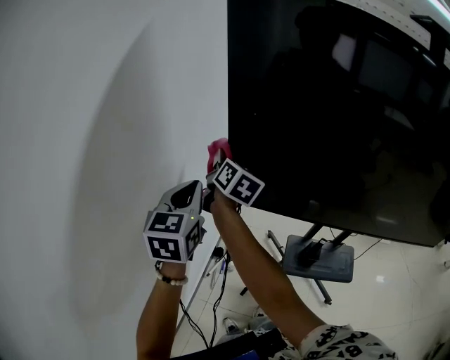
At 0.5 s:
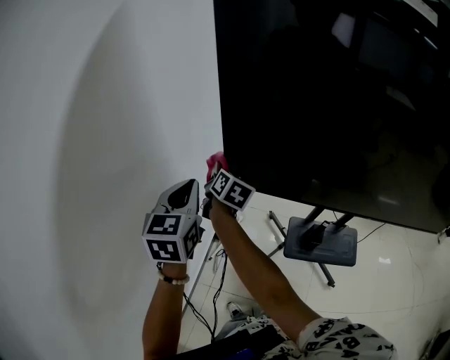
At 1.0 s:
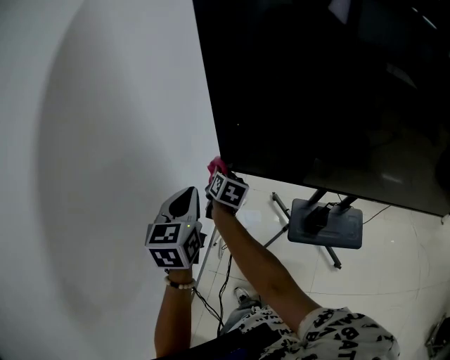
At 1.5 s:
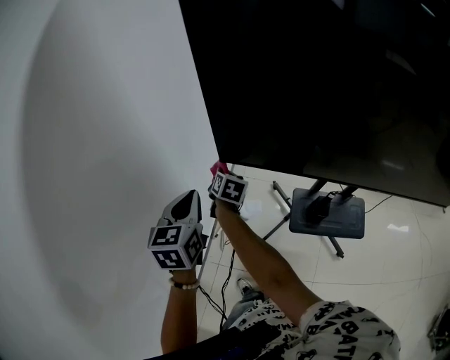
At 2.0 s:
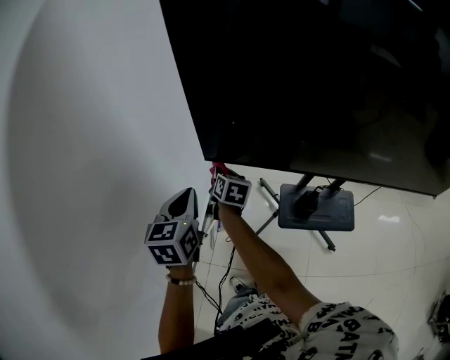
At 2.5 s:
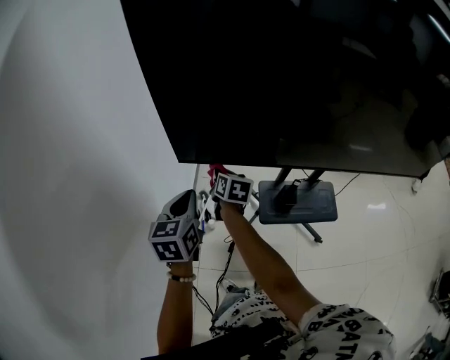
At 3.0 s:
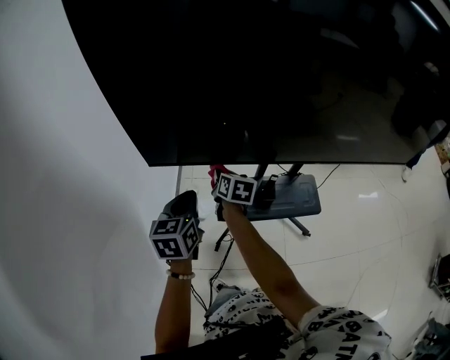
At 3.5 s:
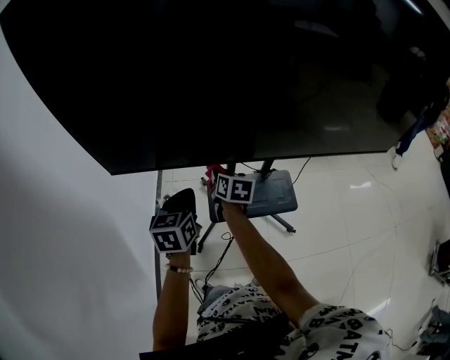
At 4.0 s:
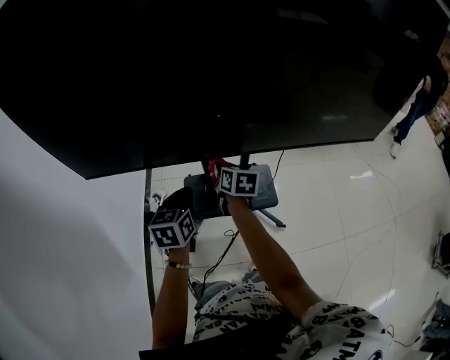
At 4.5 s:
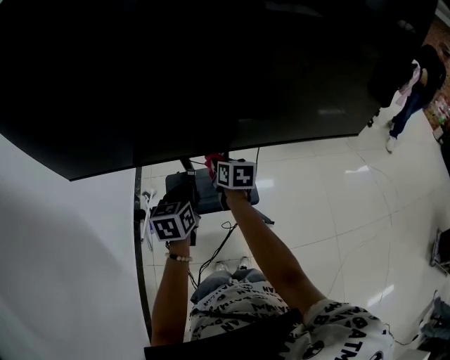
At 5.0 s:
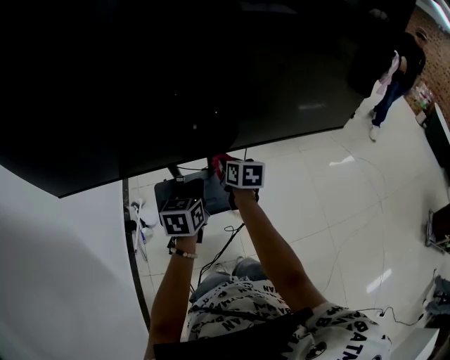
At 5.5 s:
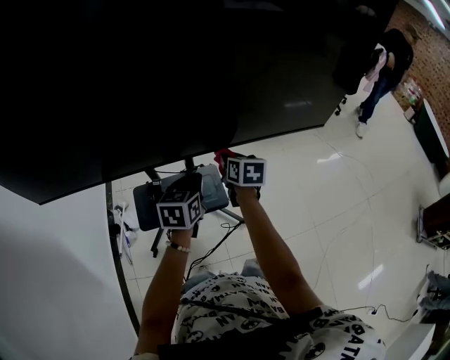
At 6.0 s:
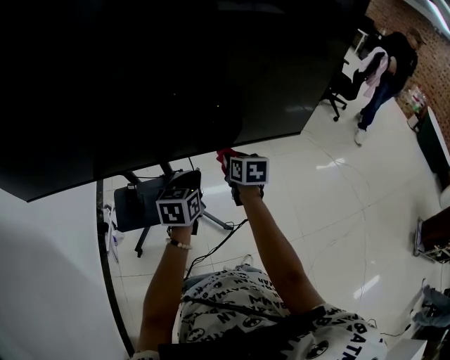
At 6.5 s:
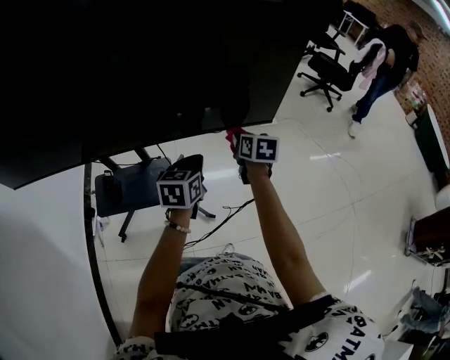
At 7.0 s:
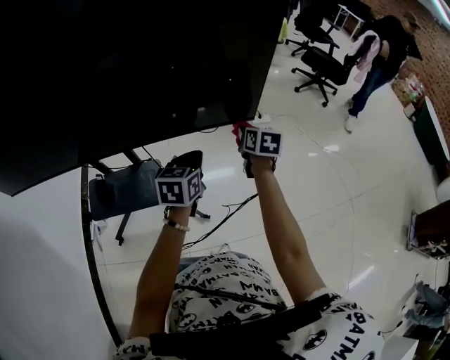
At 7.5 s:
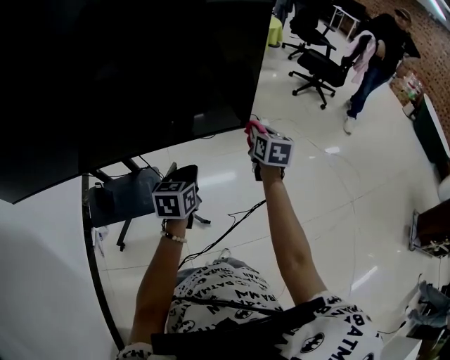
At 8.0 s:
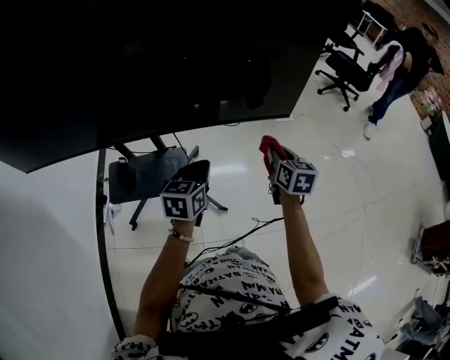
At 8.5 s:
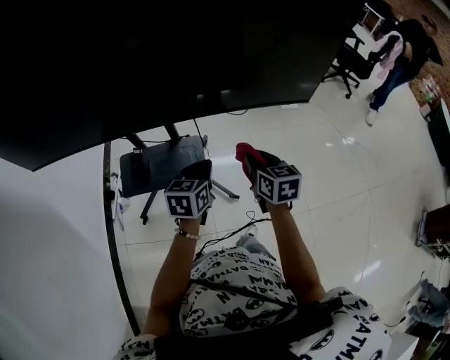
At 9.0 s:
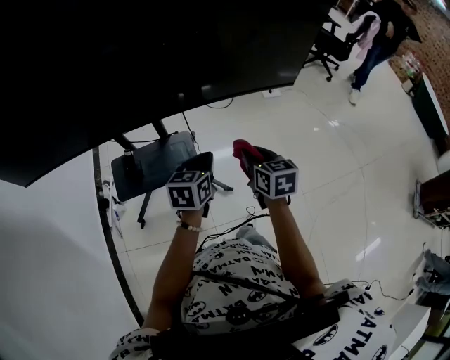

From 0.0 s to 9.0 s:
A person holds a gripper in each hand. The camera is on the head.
From 0.0 s to 2.0 s: The left gripper heads downward, covering roughly 15 cm, while the right gripper goes approximately 25 cm downward, and rotates about 30 degrees.
From 2.0 s to 4.5 s: The two grippers travel together, to the right, some 50 cm.
From 4.5 s to 7.0 s: The two grippers travel together, to the right, roughly 50 cm.
From 7.0 s to 9.0 s: The left gripper heads to the left and backward, covering about 20 cm, while the right gripper shifts approximately 30 cm backward and to the left.

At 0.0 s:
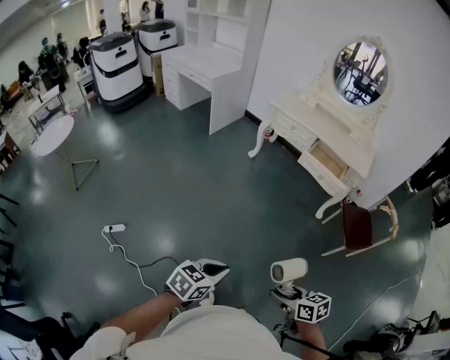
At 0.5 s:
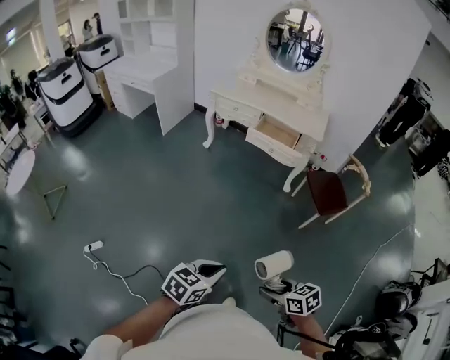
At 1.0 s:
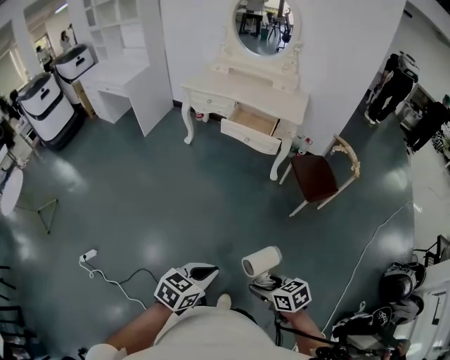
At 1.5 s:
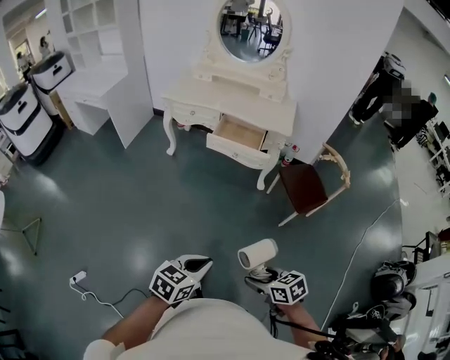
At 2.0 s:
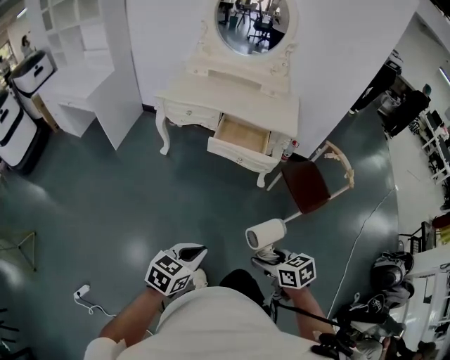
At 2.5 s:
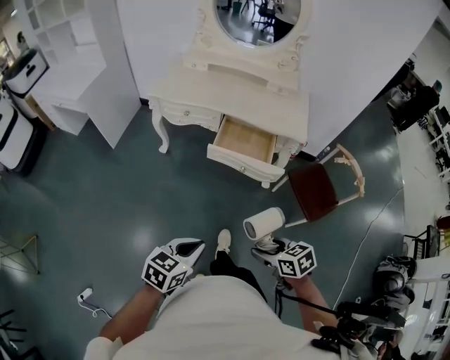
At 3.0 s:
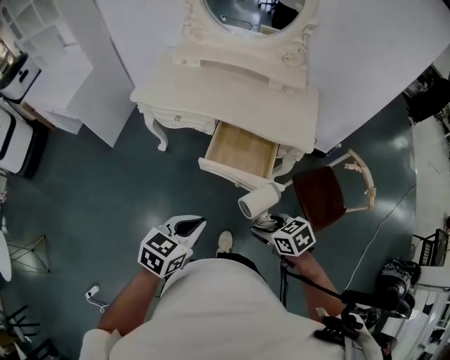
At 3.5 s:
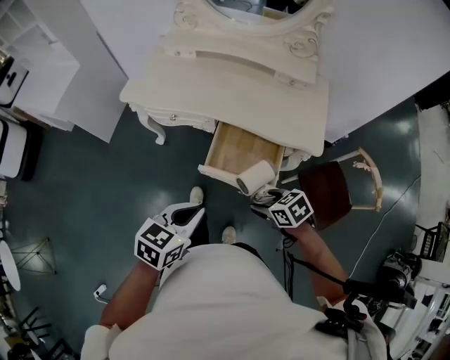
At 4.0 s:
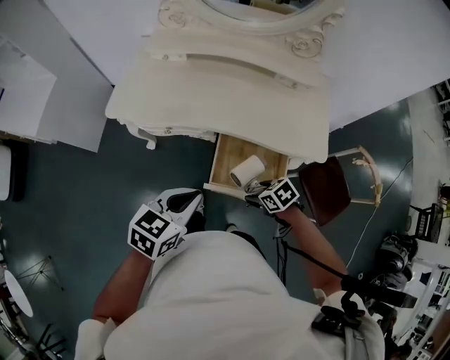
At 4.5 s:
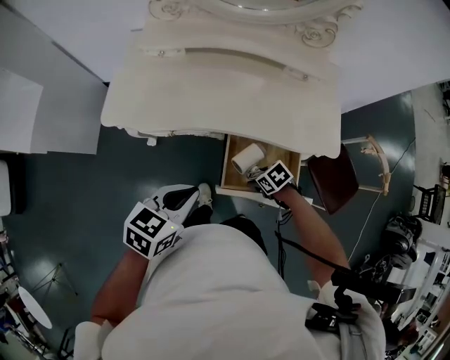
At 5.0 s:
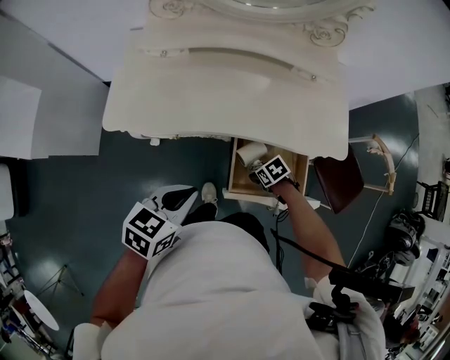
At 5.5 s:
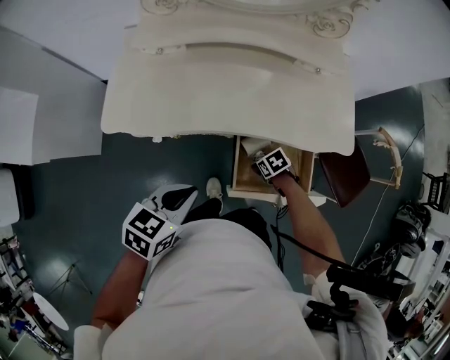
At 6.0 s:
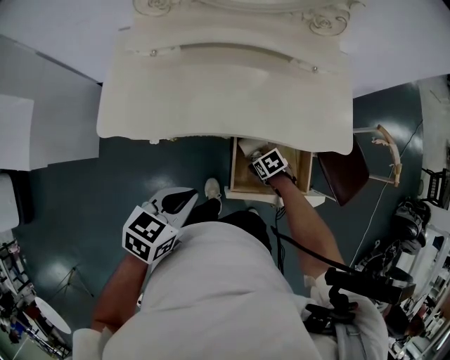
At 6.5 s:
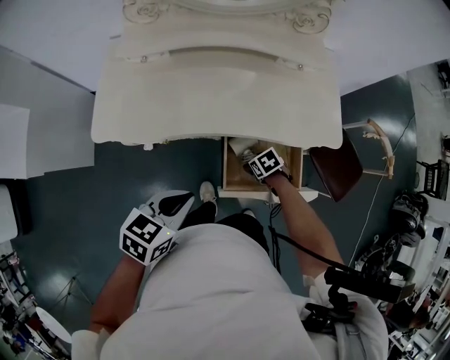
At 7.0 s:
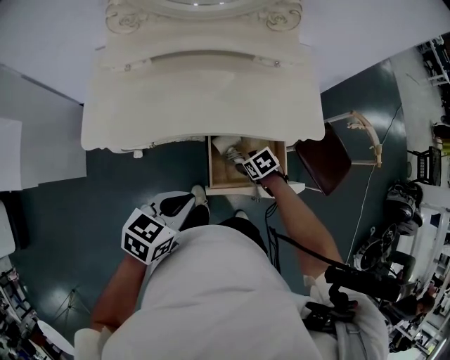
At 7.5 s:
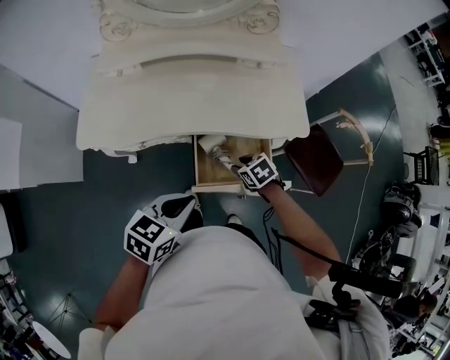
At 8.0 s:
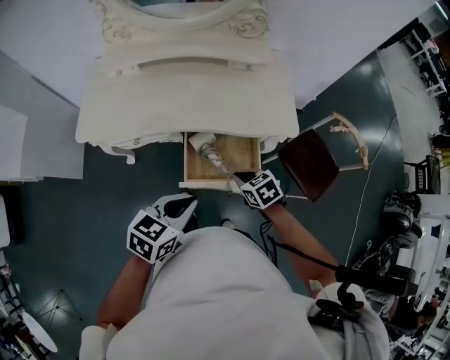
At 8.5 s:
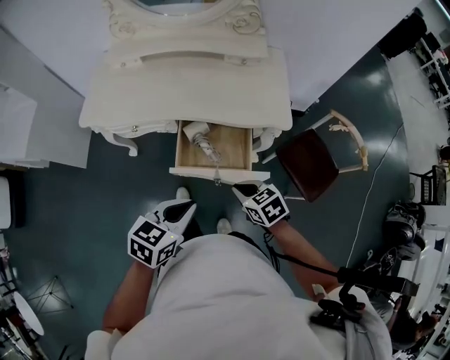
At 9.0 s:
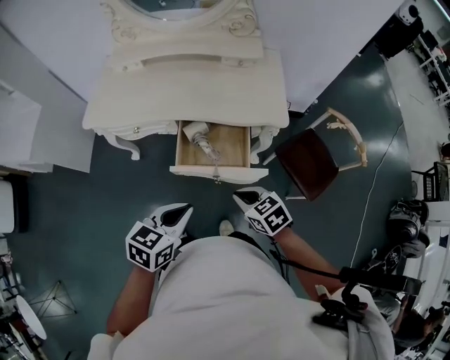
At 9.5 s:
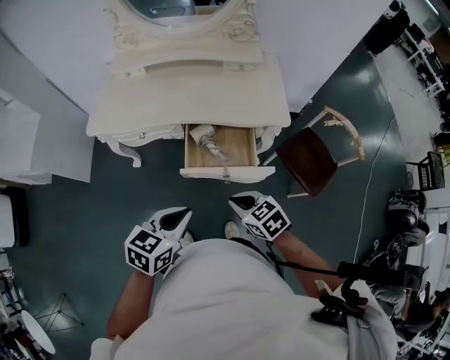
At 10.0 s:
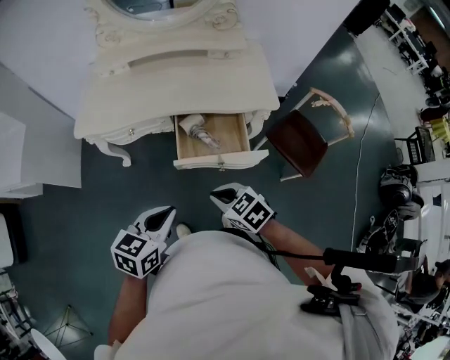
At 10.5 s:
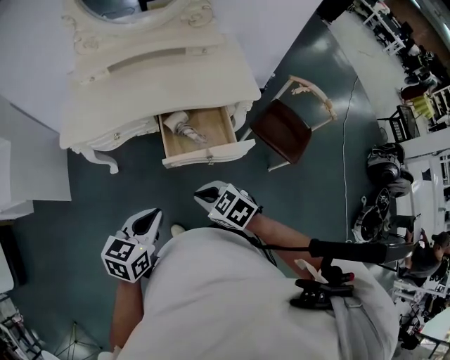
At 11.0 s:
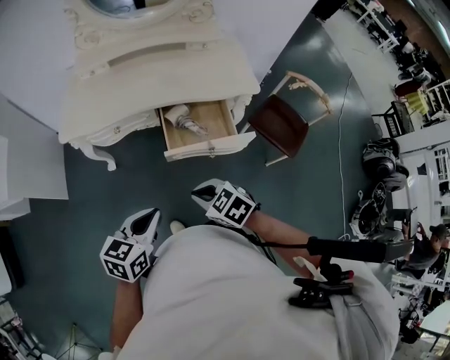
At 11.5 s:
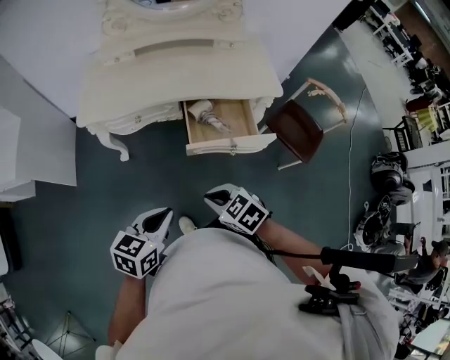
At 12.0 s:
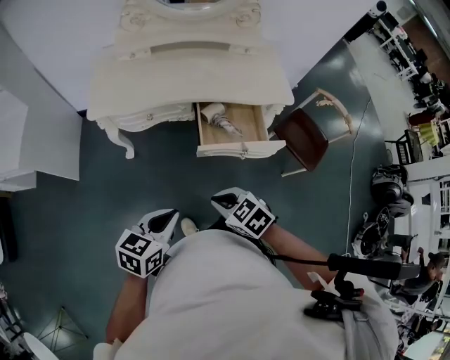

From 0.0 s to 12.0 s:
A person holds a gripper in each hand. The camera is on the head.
From 0.0 s to 2.0 s: The two grippers go approximately 35 cm forward and to the right.
From 2.0 s to 4.0 s: The two grippers travel together, roughly 60 cm. The right gripper changes its angle by about 20 degrees.
From 4.0 s to 6.0 s: The left gripper moves some 15 cm; the right gripper moves downward, approximately 15 cm.
From 6.0 s to 8.0 s: The left gripper ends up roughly 20 cm from where it was; the right gripper is displaced upward by approximately 20 cm, turns by about 20 degrees, and closes up.
From 8.0 s to 10.0 s: The right gripper travels backward, to the left and upward by roughly 20 cm. The left gripper is displaced backward and to the left by roughly 15 cm.
From 10.0 s to 12.0 s: The left gripper is displaced to the left by about 15 cm. Meanwhile the right gripper travels to the left and backward by approximately 15 cm.

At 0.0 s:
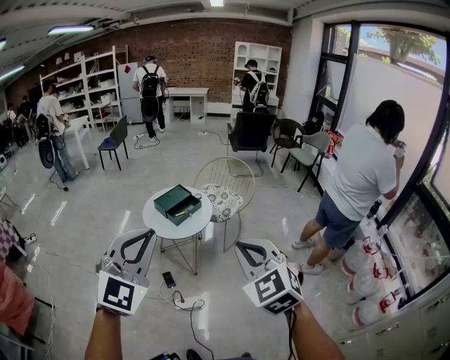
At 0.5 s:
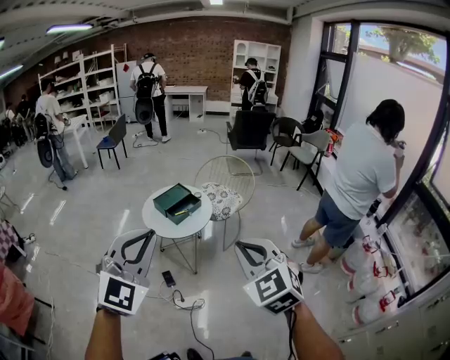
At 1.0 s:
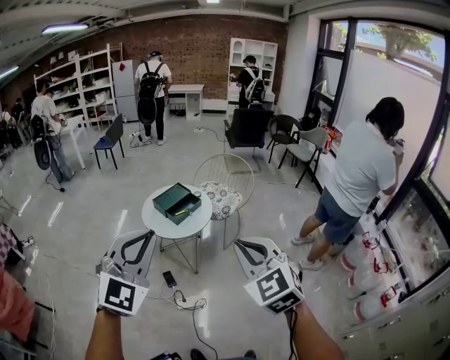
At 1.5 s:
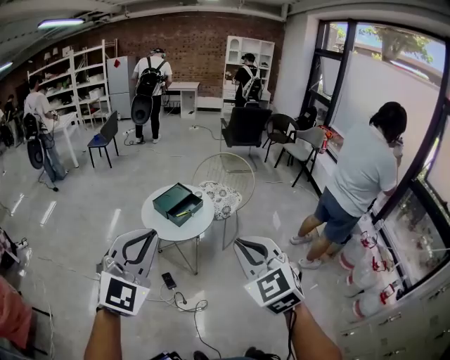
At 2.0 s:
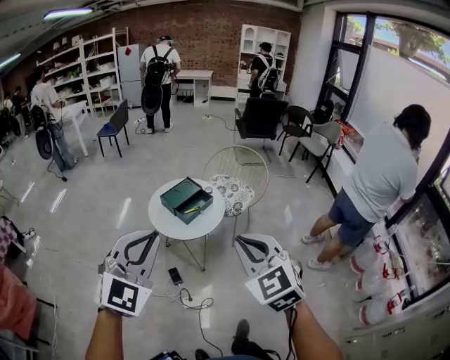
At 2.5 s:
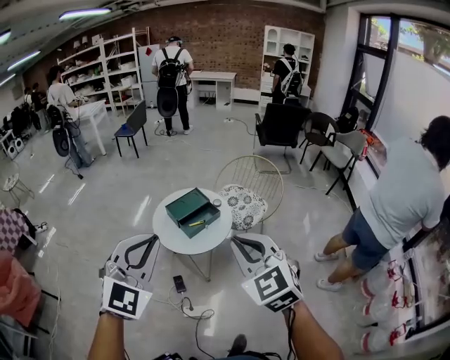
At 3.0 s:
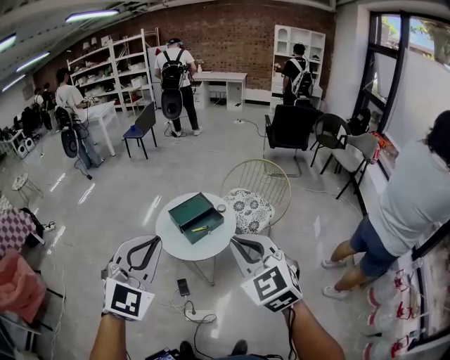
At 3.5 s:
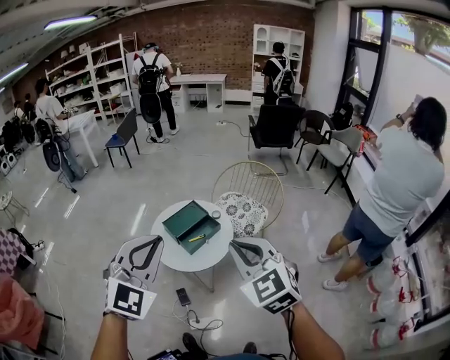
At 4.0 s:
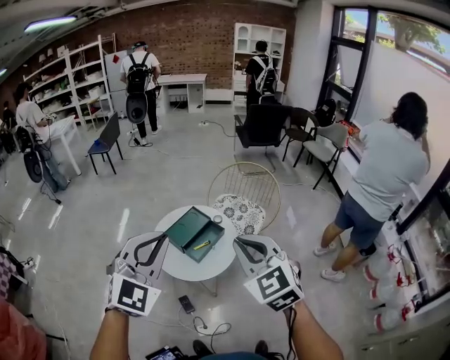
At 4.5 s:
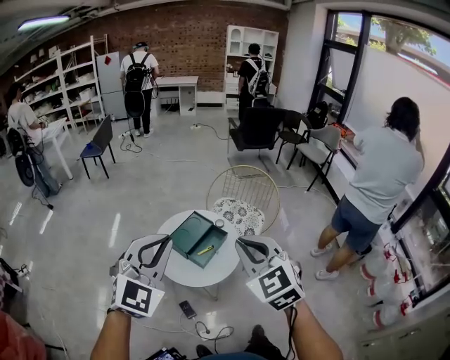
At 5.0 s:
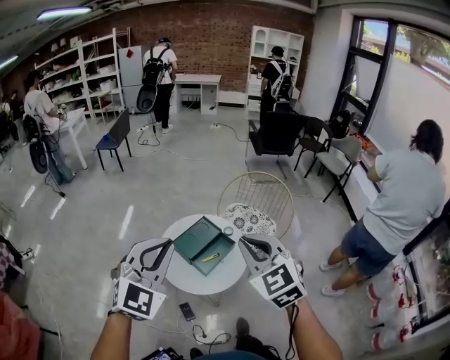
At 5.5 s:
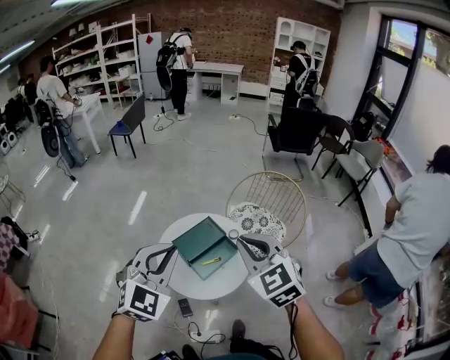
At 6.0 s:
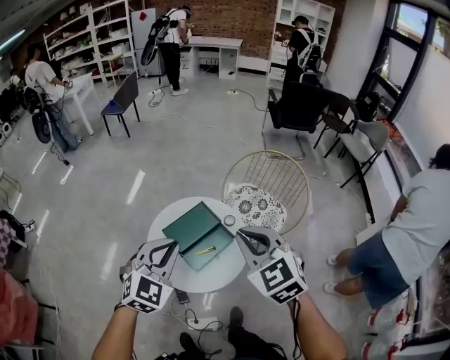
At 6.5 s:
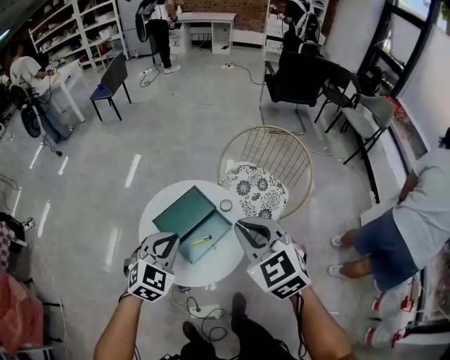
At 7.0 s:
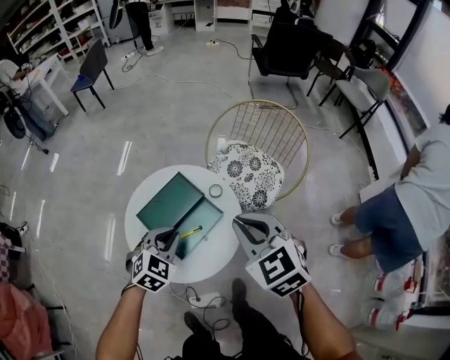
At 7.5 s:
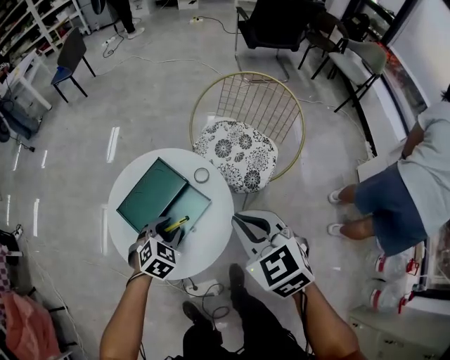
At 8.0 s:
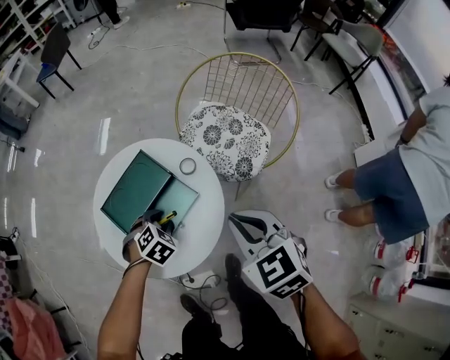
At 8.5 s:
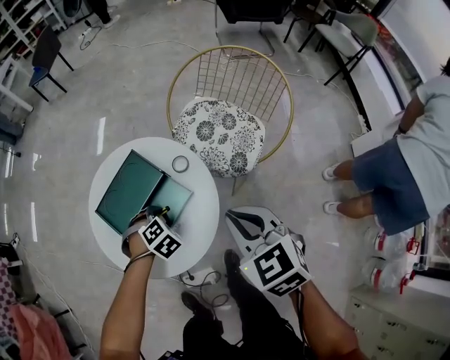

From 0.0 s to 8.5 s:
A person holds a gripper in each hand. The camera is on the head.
From 0.0 s to 2.0 s: Both grippers travel together forward and to the left, some 15 cm.
From 2.0 s to 4.0 s: The grippers both shift forward by about 25 cm.
From 4.0 s to 6.5 s: The left gripper goes approximately 40 cm downward and forward, and changes its angle by about 30 degrees, while the right gripper shifts some 35 cm forward and downward.
From 6.5 s to 8.5 s: The right gripper heads downward, covering some 20 cm. Meanwhile the left gripper moves downward, roughly 35 cm, and tips its fingers downward by about 40 degrees.
